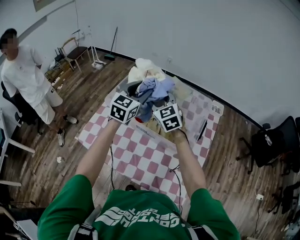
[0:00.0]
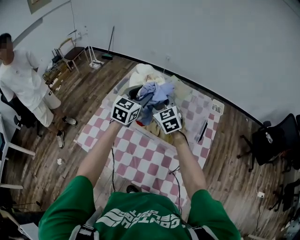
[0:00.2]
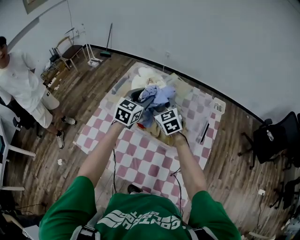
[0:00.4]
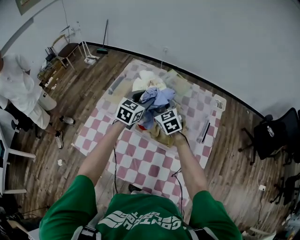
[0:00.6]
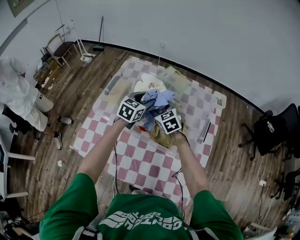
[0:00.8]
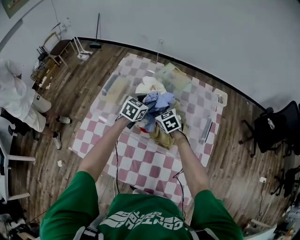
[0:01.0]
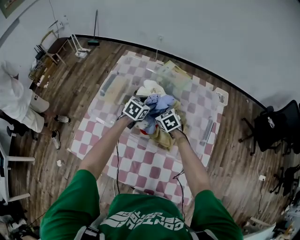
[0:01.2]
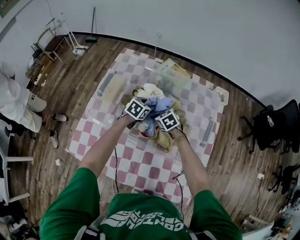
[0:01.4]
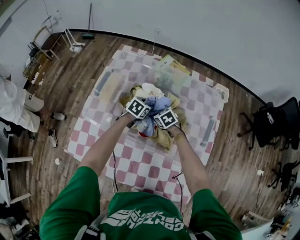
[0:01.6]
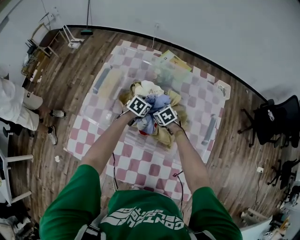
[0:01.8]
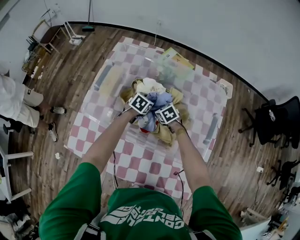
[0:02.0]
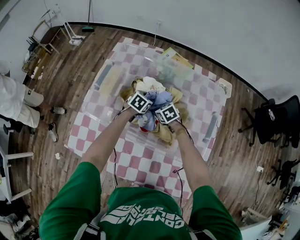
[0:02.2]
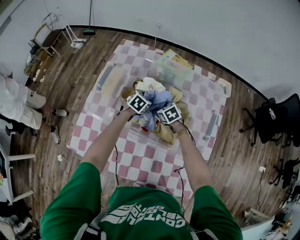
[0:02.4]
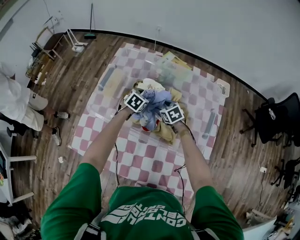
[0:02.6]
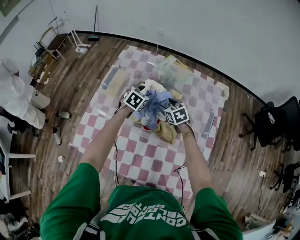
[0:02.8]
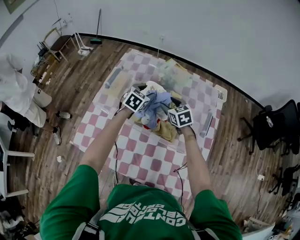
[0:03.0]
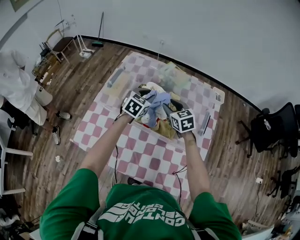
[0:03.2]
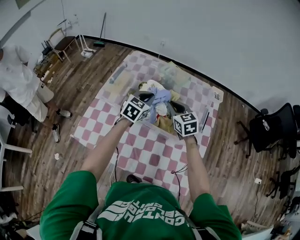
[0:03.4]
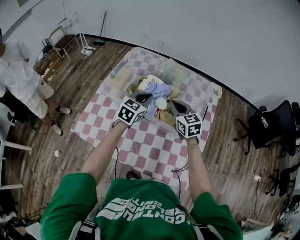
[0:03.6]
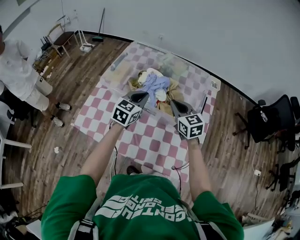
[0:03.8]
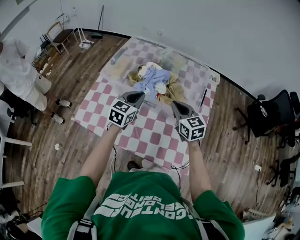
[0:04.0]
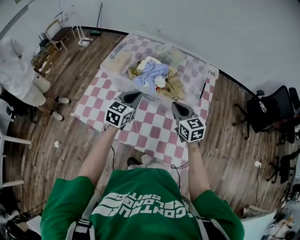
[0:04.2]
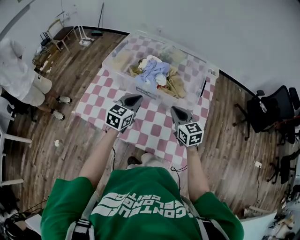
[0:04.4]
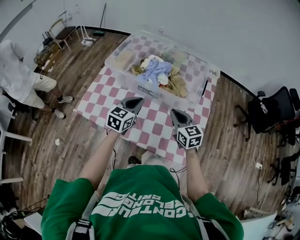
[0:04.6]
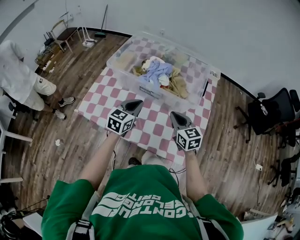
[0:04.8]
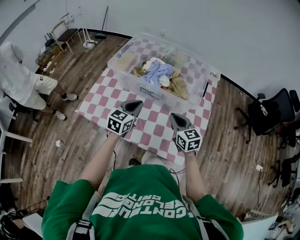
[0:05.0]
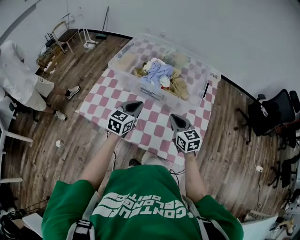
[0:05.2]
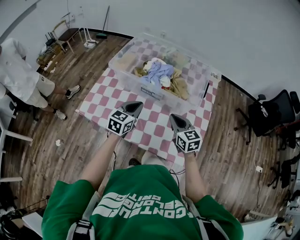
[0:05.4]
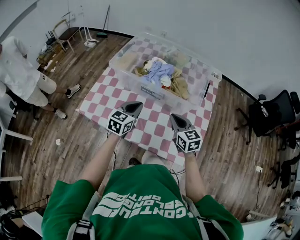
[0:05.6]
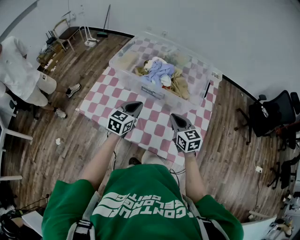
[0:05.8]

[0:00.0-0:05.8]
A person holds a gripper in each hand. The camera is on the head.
0.0 to 1.4 s: The grippers both shift downward by about 30 cm. The right gripper tips its fingers downward by roughly 40 degrees. The left gripper tilts its fingers some 40 degrees downward.
1.4 to 2.8 s: The left gripper changes place by roughly 5 cm. The right gripper travels upward by about 5 cm.
2.8 to 4.4 s: The right gripper heads backward and upward, covering about 35 cm, rotates about 20 degrees, and closes; the left gripper heads backward, covering approximately 35 cm, changes its angle by some 30 degrees, and closes its fingers.
4.4 to 5.8 s: The grippers move only a little.

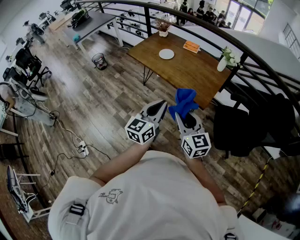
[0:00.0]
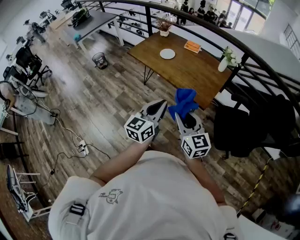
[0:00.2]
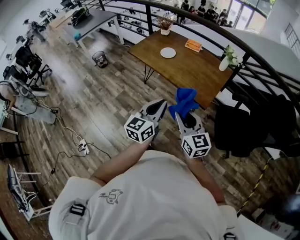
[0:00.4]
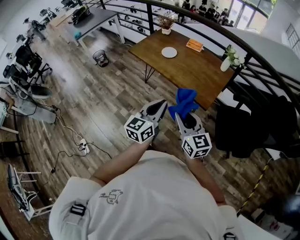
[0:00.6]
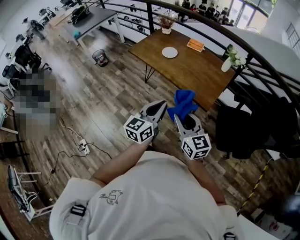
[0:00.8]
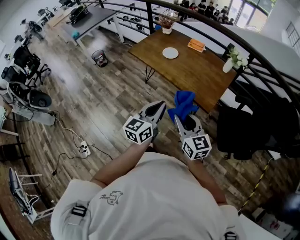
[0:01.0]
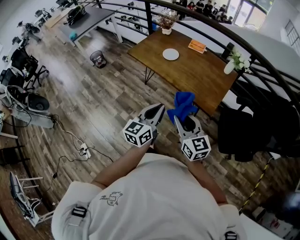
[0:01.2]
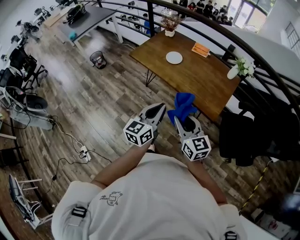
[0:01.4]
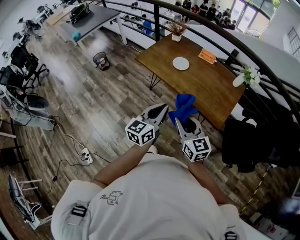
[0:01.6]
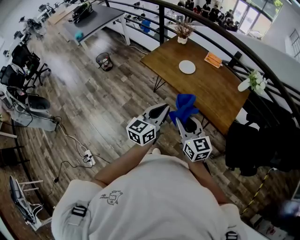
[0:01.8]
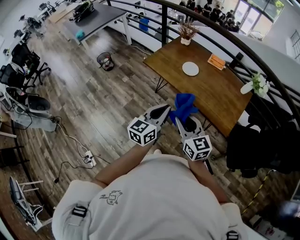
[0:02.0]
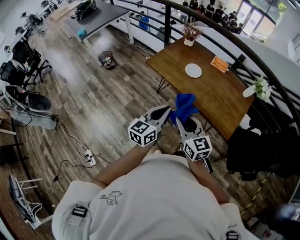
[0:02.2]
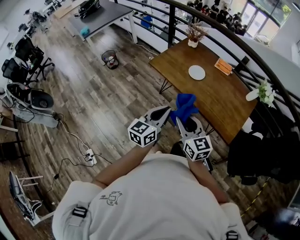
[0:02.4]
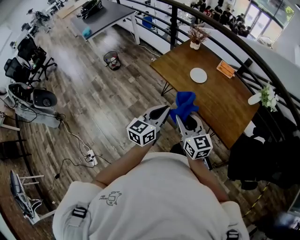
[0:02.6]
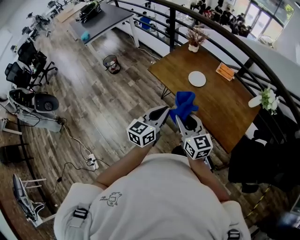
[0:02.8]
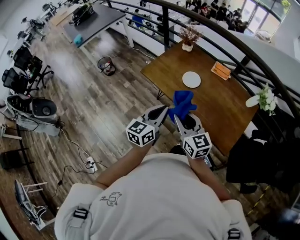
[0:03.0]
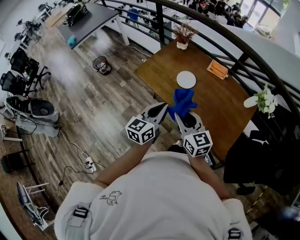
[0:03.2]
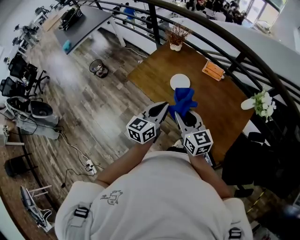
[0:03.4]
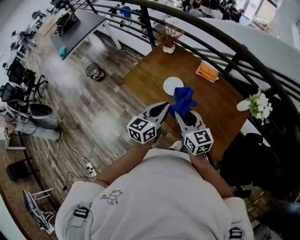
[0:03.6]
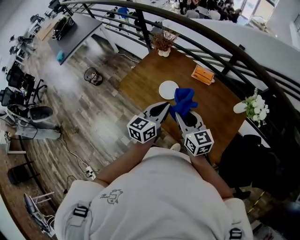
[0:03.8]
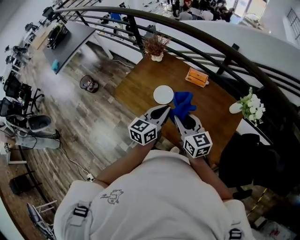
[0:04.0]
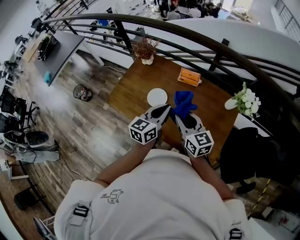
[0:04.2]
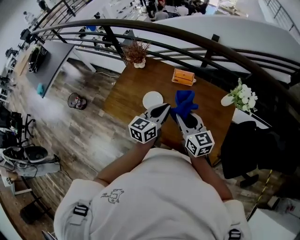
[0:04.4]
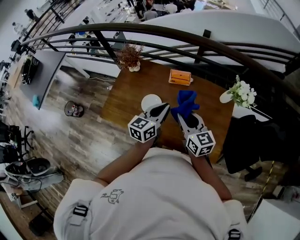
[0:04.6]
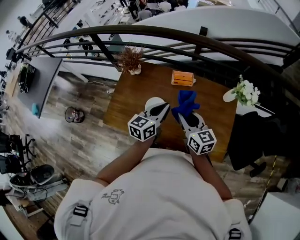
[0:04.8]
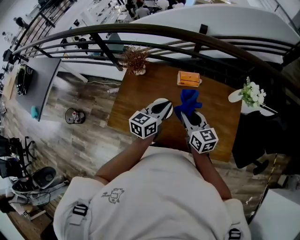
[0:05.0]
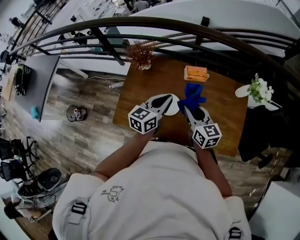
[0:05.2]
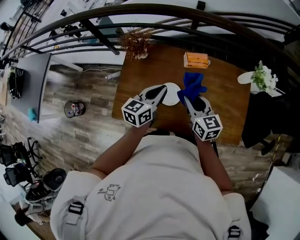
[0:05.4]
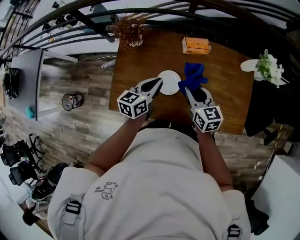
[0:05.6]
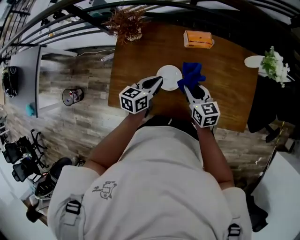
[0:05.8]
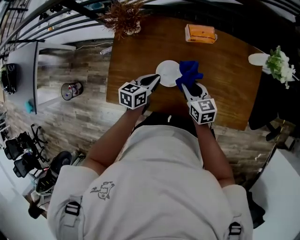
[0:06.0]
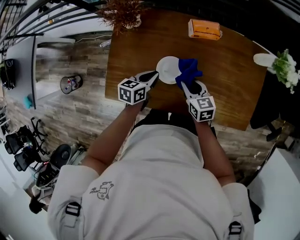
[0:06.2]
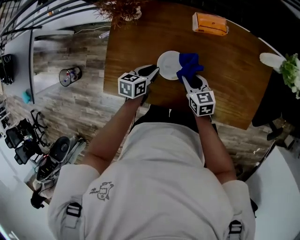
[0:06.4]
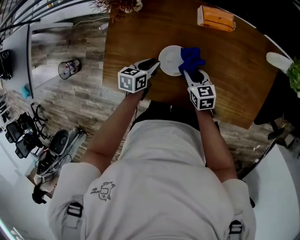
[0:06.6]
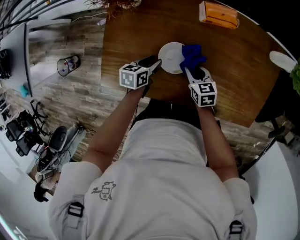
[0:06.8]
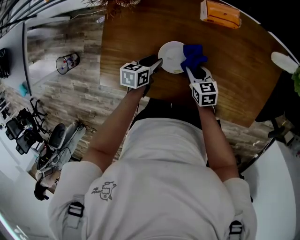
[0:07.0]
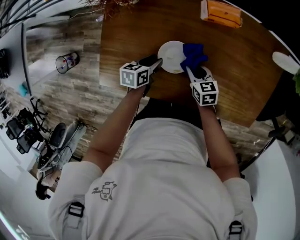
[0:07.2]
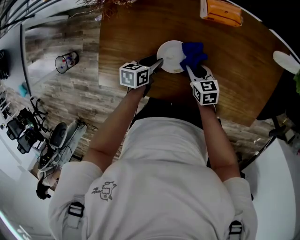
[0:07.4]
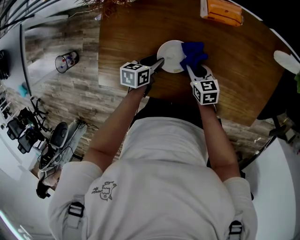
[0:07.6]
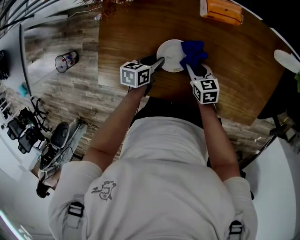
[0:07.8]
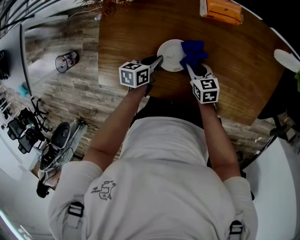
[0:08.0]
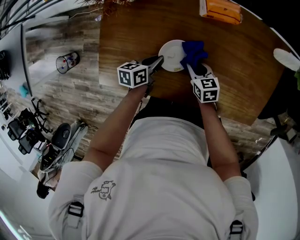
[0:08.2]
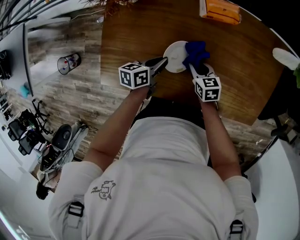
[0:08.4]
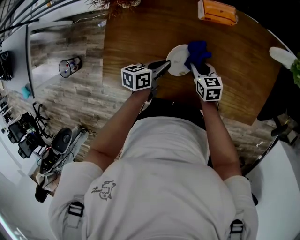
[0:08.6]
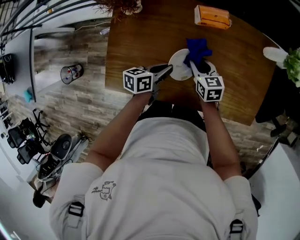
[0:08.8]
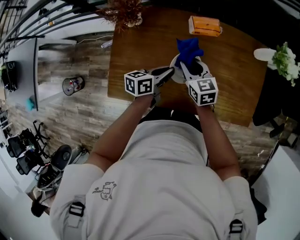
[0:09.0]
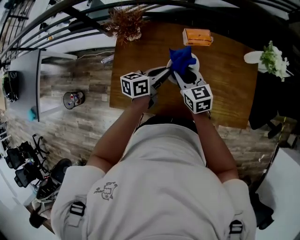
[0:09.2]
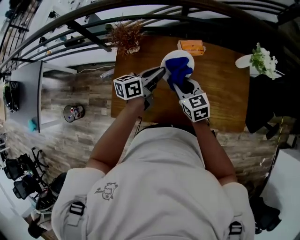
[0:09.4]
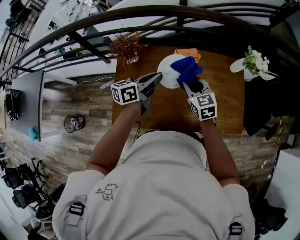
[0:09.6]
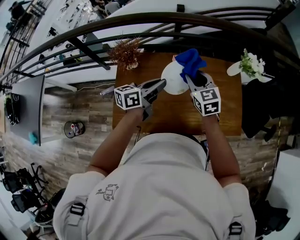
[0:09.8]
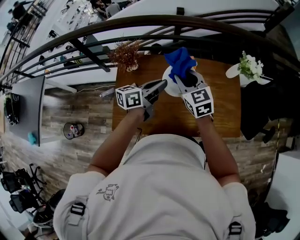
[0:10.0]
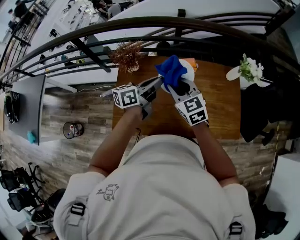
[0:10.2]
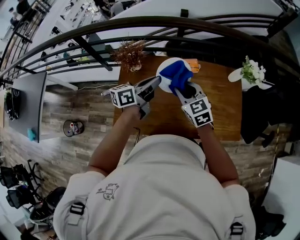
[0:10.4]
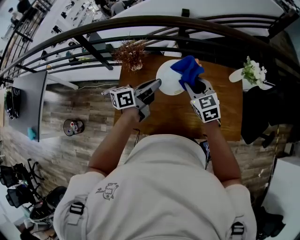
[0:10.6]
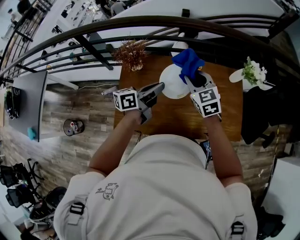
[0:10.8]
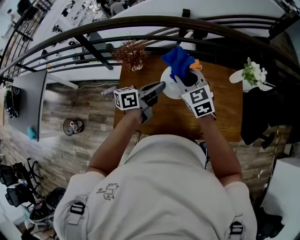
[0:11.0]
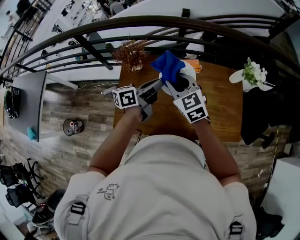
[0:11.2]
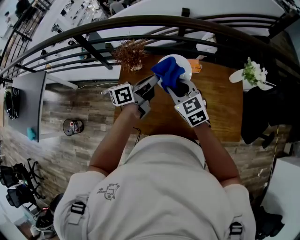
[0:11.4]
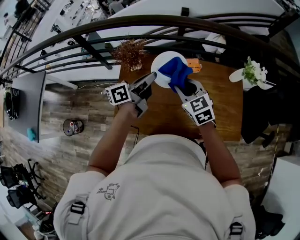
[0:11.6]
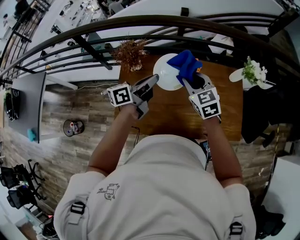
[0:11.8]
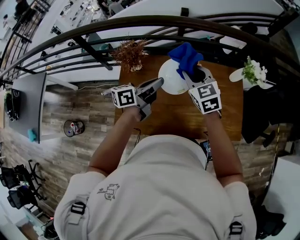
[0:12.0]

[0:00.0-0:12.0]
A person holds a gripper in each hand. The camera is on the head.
0.0 to 1.6 s: The grippers both shift forward and to the left by about 20 cm.
1.6 to 3.0 s: Both grippers travel together forward, roughly 20 cm.
3.0 to 4.4 s: Both grippers move forward and to the right, some 30 cm. The right gripper turns by some 20 degrees; the left gripper changes its angle by roughly 20 degrees.
4.4 to 6.0 s: The right gripper heads downward and to the left, covering about 25 cm, and rotates roughly 30 degrees, while the left gripper goes some 30 cm downward, to the left and forward, and changes its angle by roughly 30 degrees.
6.0 to 7.6 s: Both grippers travel together downward, about 15 cm. The left gripper swivels about 20 degrees, and opens.
7.6 to 9.0 s: The grippers both shift upward by approximately 15 cm. The left gripper changes its angle by roughly 20 degrees, and closes.
9.0 to 10.4 s: The two grippers go about 20 cm upward. The right gripper swivels some 20 degrees. The left gripper changes its angle by roughly 20 degrees.
10.4 to 12.0 s: The right gripper heads forward, covering roughly 5 cm, and goes to the left and returns, roughly 5 cm each way.

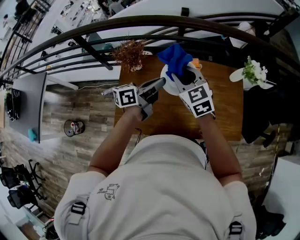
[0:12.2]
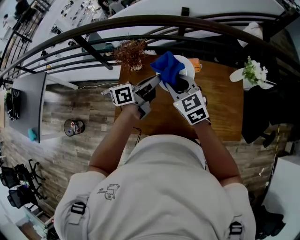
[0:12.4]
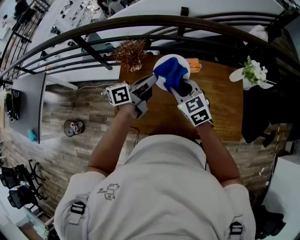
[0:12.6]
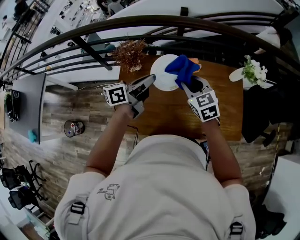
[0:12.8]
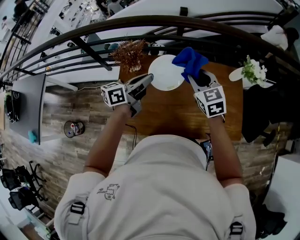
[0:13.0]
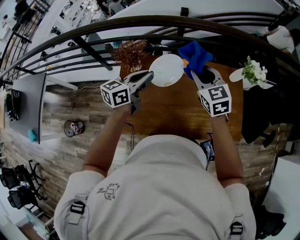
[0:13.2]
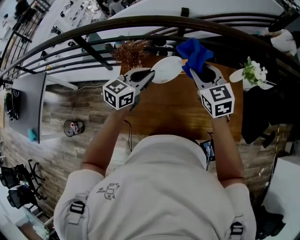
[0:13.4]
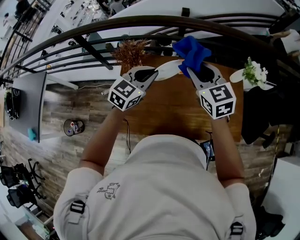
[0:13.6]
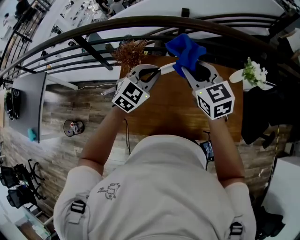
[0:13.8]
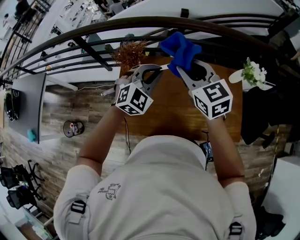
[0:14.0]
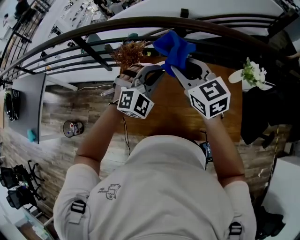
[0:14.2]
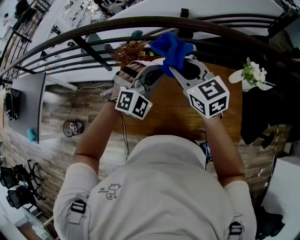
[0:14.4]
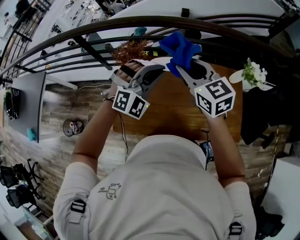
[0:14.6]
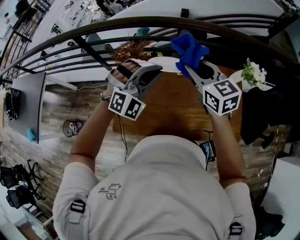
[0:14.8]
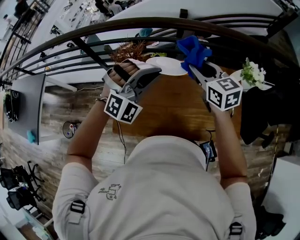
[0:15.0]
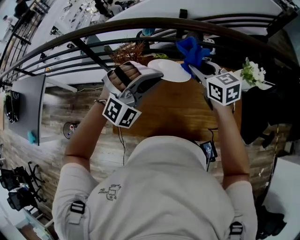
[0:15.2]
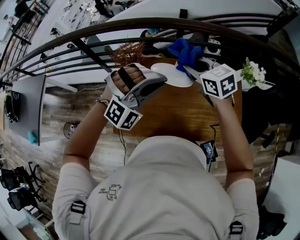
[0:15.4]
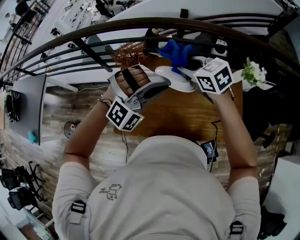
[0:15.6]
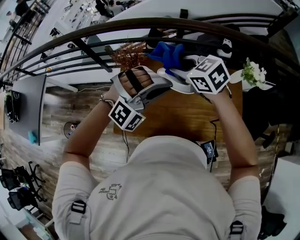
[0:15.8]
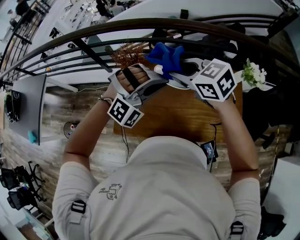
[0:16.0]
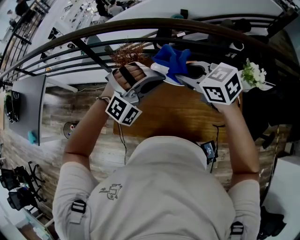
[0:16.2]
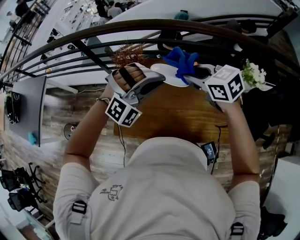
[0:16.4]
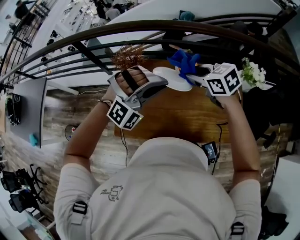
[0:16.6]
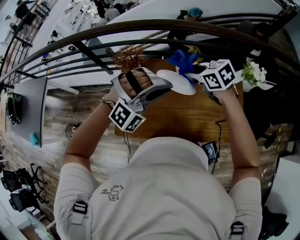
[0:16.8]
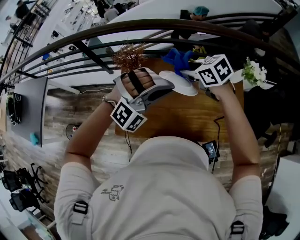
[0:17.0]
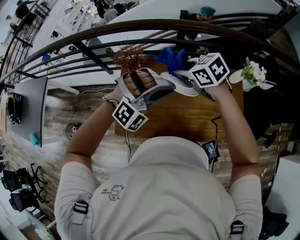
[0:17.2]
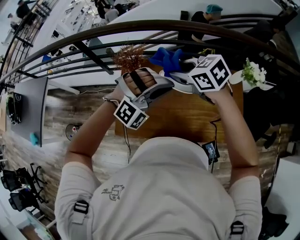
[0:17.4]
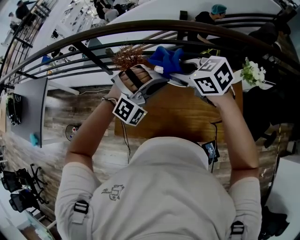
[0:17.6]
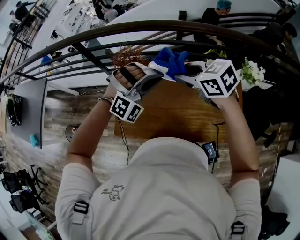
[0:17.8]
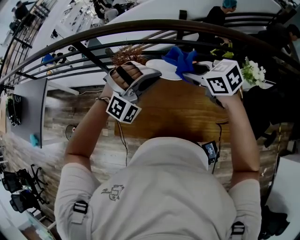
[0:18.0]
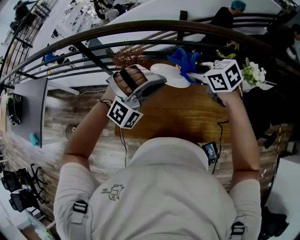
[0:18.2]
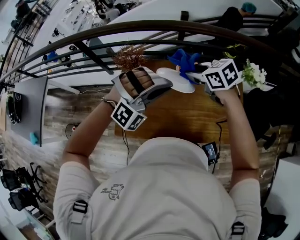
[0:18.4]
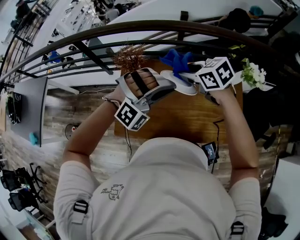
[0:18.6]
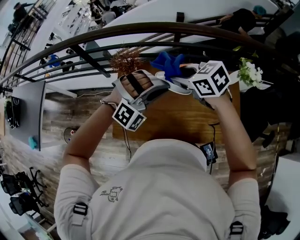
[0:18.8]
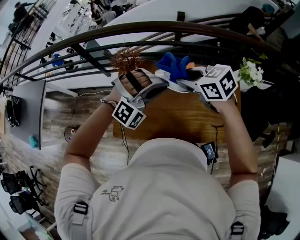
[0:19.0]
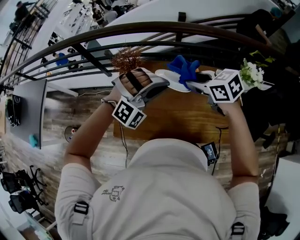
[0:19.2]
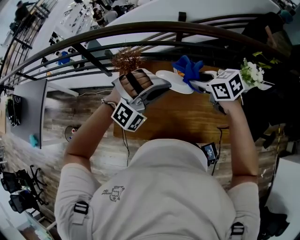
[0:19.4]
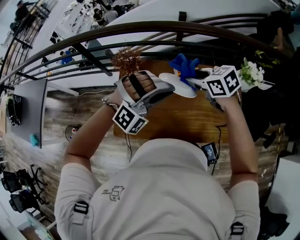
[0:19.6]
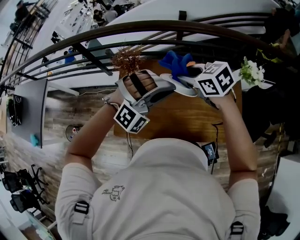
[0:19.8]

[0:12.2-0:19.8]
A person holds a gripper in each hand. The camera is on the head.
12.2 to 13.8 s: The right gripper travels upward by approximately 5 cm, while the left gripper rotates around the line of its fingers by roughly 70 degrees, clockwise from behind.
13.8 to 15.2 s: The right gripper shifts by some 5 cm; the left gripper moves upward and backward, approximately 10 cm, and rolls clockwise, seen from behind, by approximately 50 degrees.
15.2 to 16.8 s: The right gripper is displaced downward by roughly 5 cm, travels to the left and back again, approximately 10 cm each way, and turns by about 30 degrees.
18.2 to 19.8 s: The right gripper swings left and right, approximately 5 cm each way, with 2 reversals.
